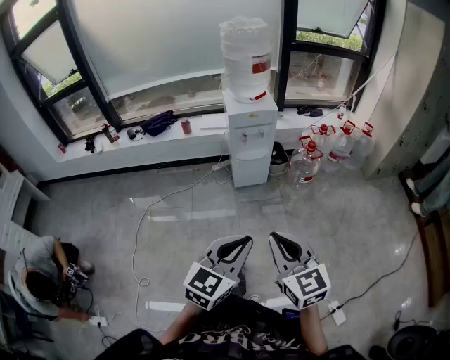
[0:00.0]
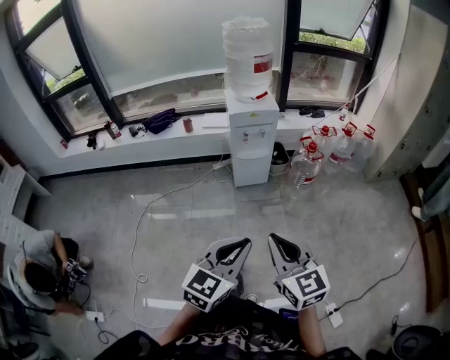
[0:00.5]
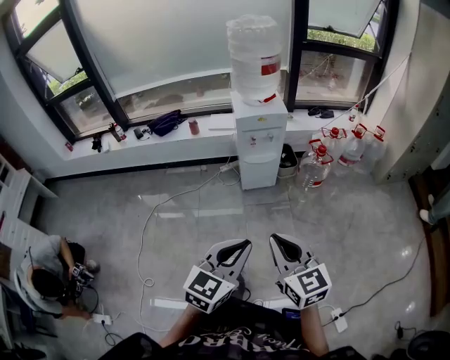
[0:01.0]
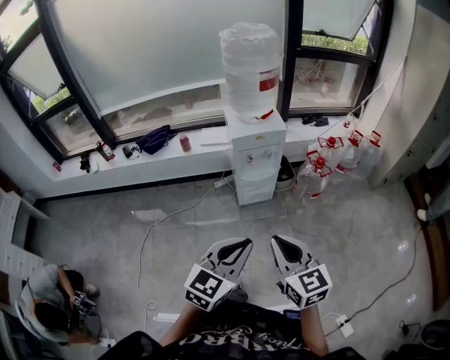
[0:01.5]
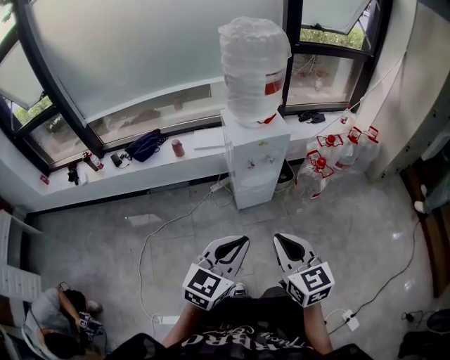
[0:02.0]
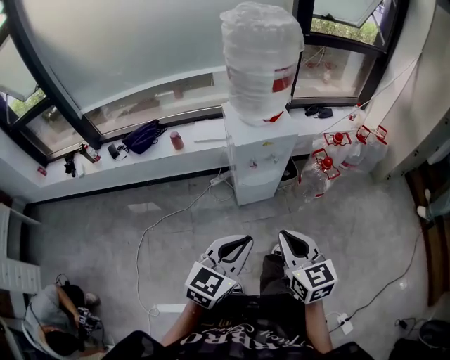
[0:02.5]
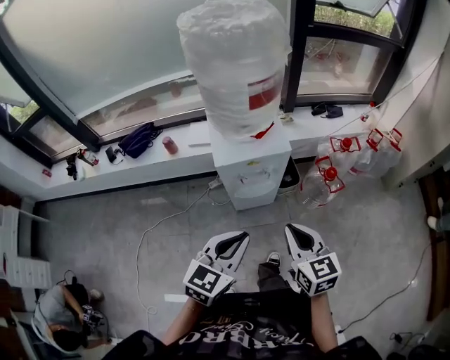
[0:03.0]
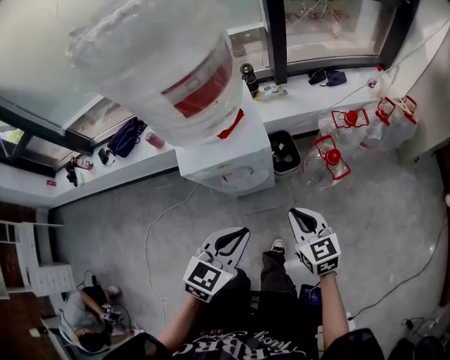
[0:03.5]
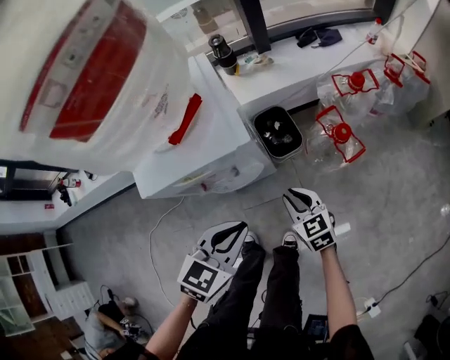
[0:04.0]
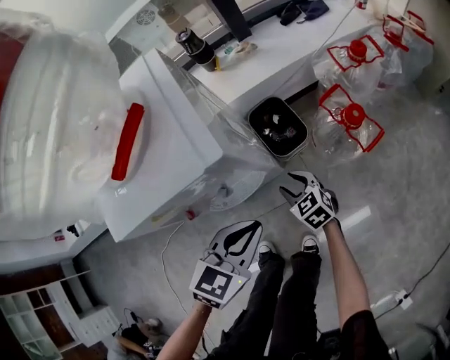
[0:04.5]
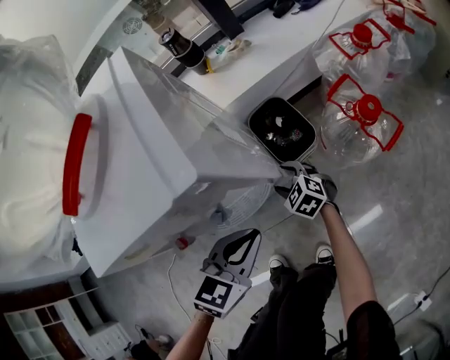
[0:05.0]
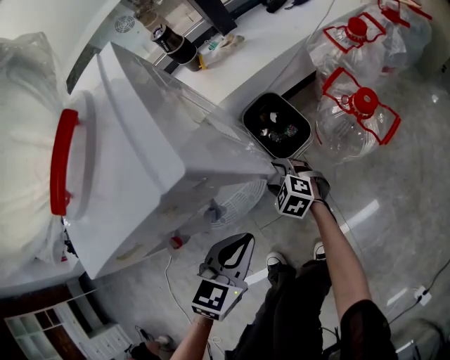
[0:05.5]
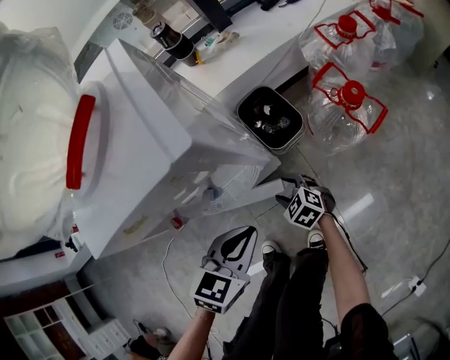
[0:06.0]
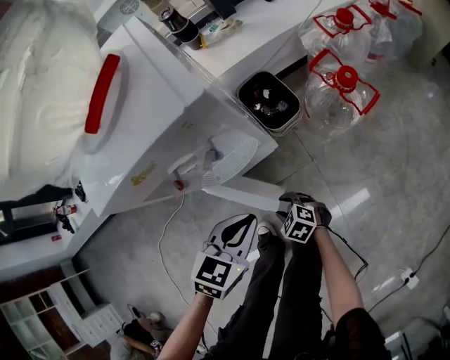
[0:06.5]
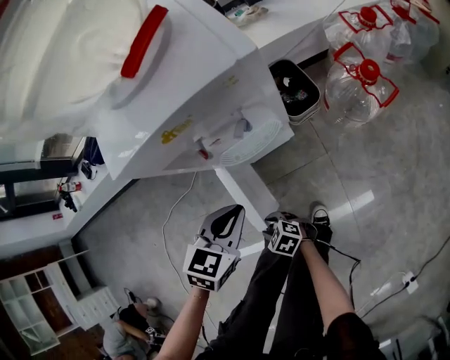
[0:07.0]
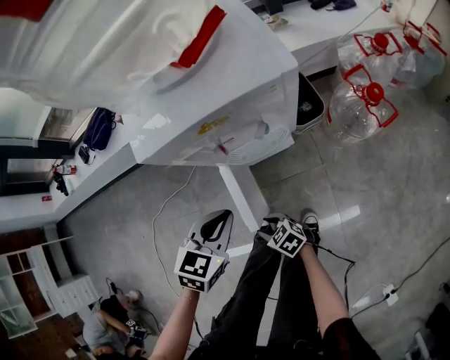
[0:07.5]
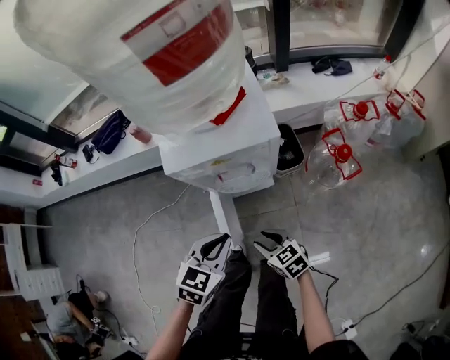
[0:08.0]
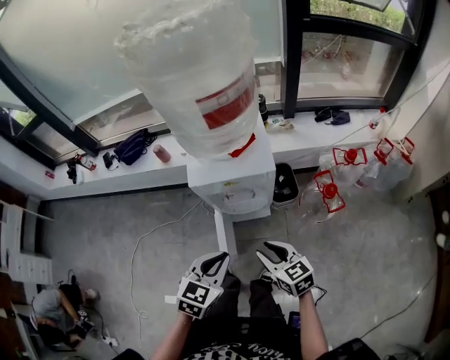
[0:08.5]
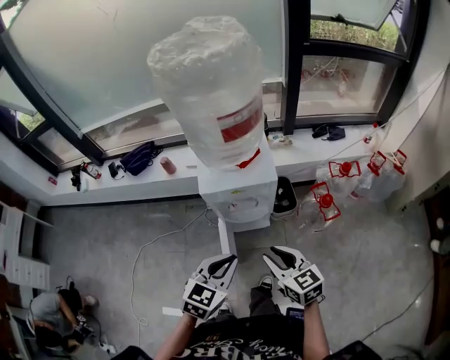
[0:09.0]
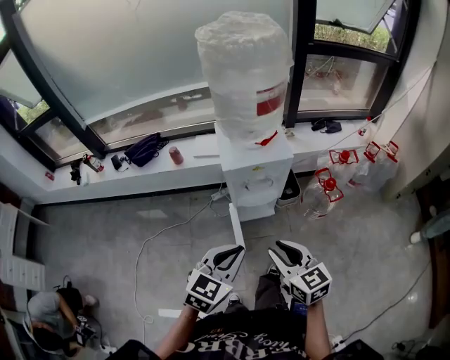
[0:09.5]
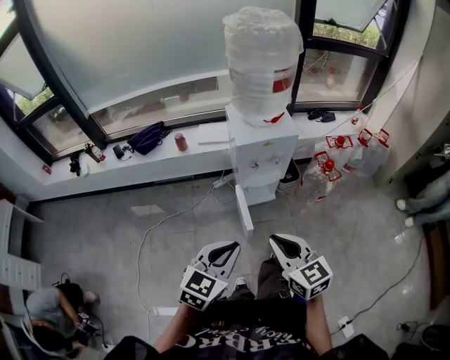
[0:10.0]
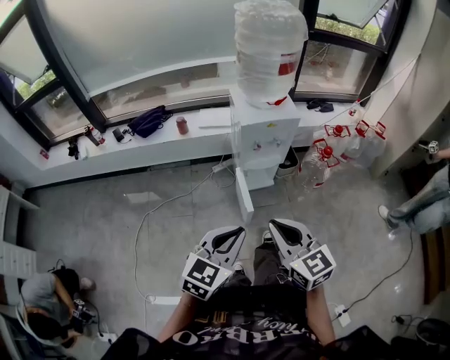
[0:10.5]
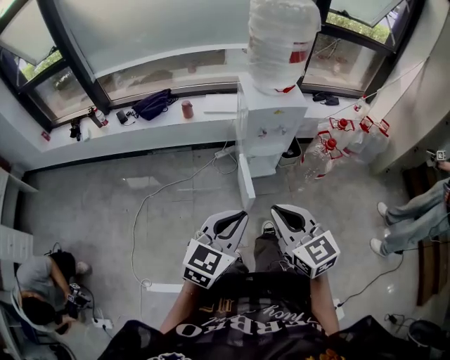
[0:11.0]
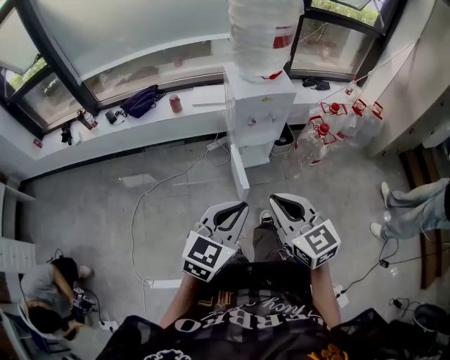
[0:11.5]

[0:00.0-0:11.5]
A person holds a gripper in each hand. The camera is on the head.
0:00.0 to 0:02.0: Both grippers travel together forward and to the left, roughly 30 cm.
0:02.0 to 0:04.0: Both grippers are carried forward and to the right, some 50 cm. The two grippers go roughly 35 cm downward. The left gripper changes its angle by about 20 degrees.
0:04.0 to 0:06.0: Both grippers travel together downward, some 25 cm. The right gripper swivels about 20 degrees, and opens its fingers.
0:06.0 to 0:07.5: The left gripper moves approximately 15 cm. The right gripper ends up some 30 cm from where it was, and swivels about 20 degrees.
0:07.5 to 0:09.5: The right gripper heads upward, covering some 50 cm, and swivels approximately 40 degrees. The left gripper is displaced upward and backward by some 40 cm, and turns by approximately 20 degrees.
0:09.5 to 0:11.5: Both grippers travel together backward and to the left, some 20 cm. The right gripper closes its fingers.

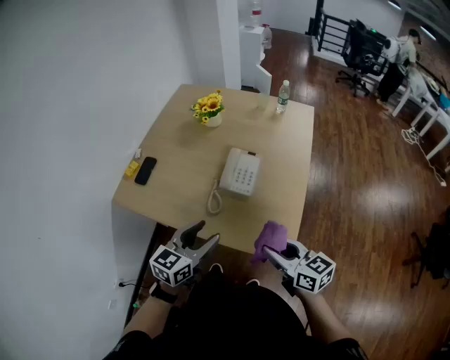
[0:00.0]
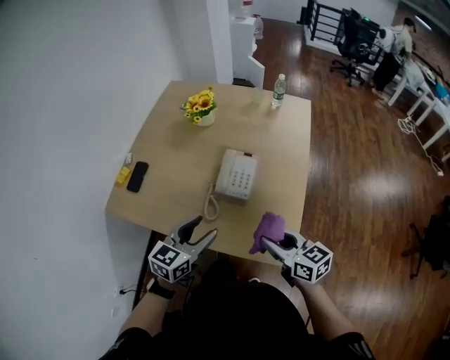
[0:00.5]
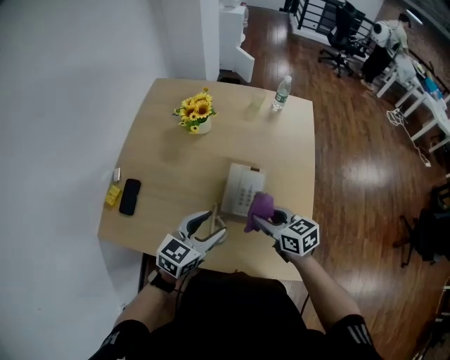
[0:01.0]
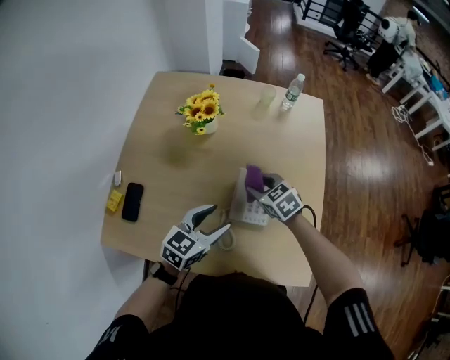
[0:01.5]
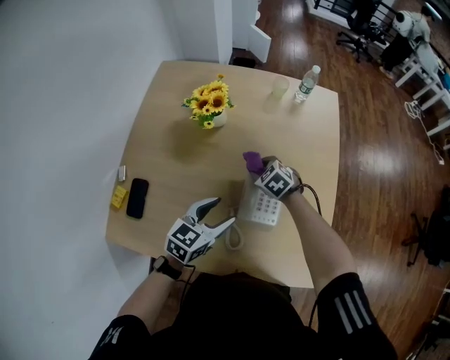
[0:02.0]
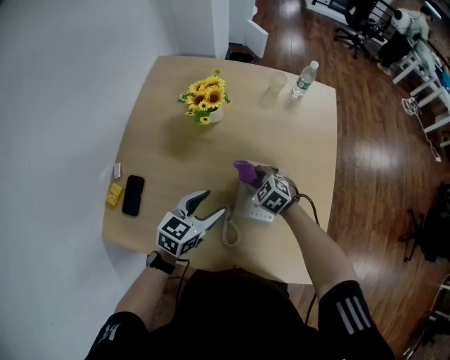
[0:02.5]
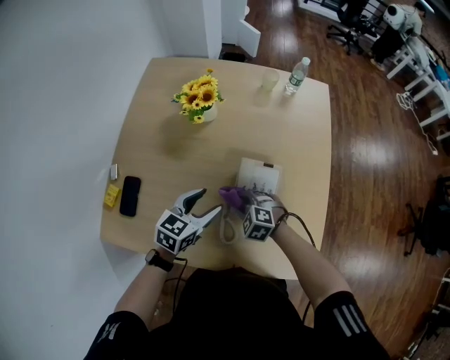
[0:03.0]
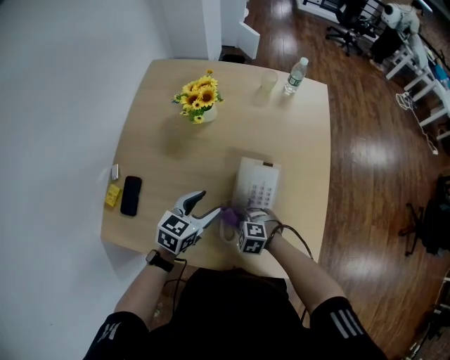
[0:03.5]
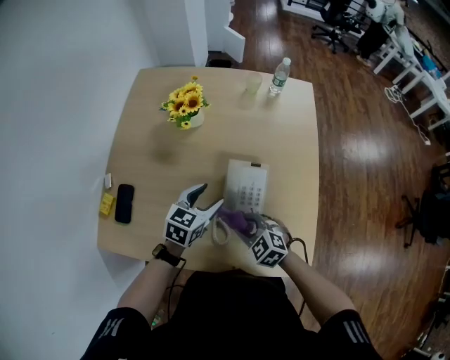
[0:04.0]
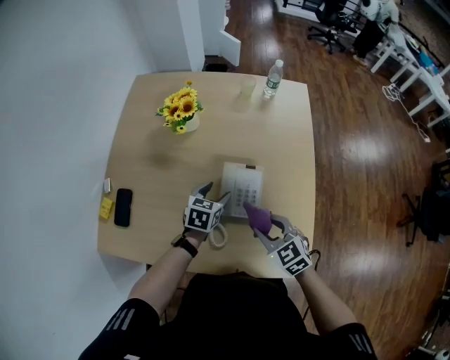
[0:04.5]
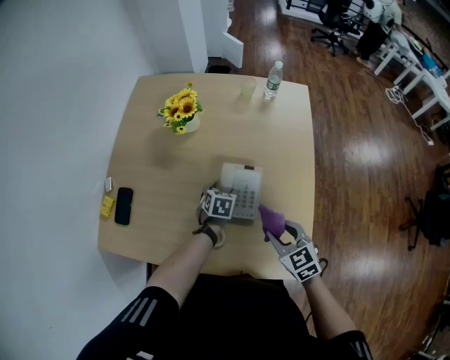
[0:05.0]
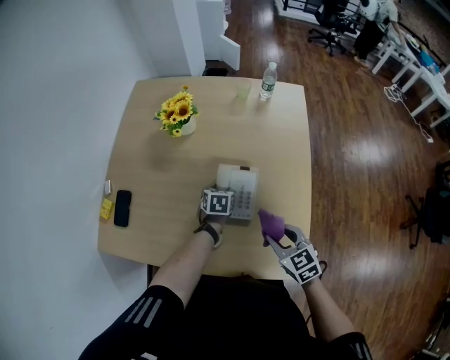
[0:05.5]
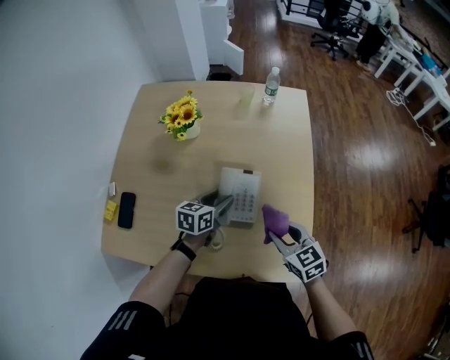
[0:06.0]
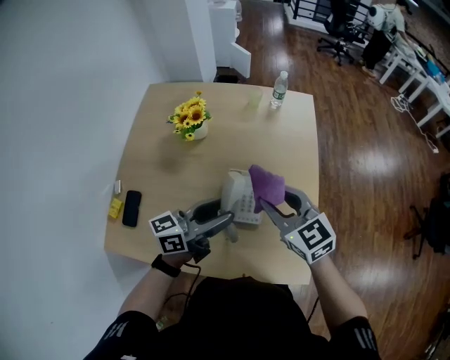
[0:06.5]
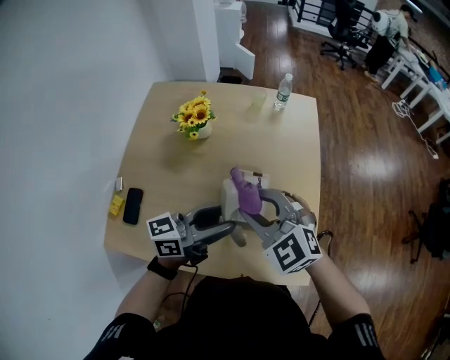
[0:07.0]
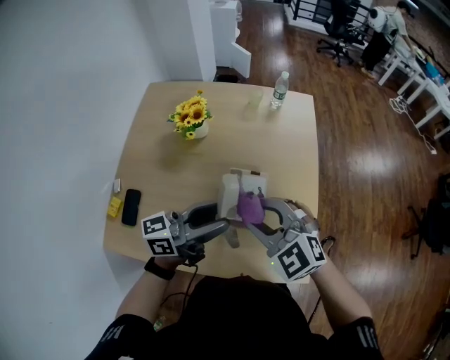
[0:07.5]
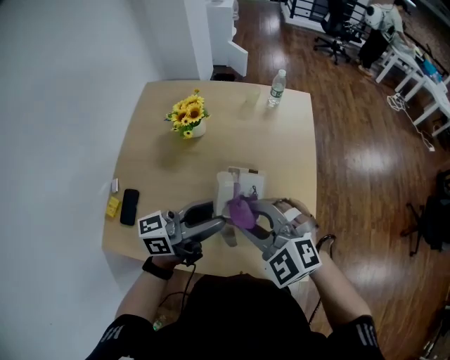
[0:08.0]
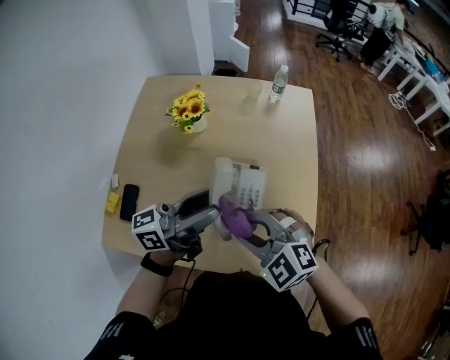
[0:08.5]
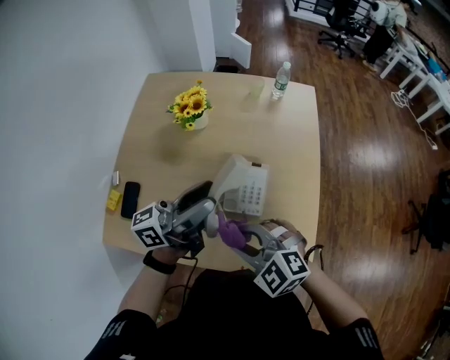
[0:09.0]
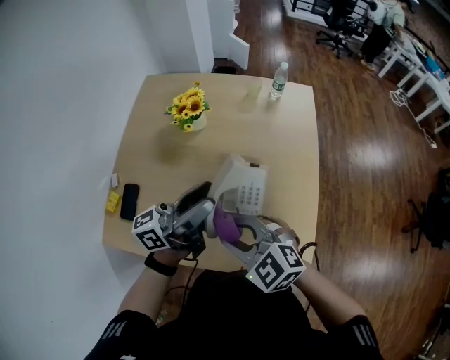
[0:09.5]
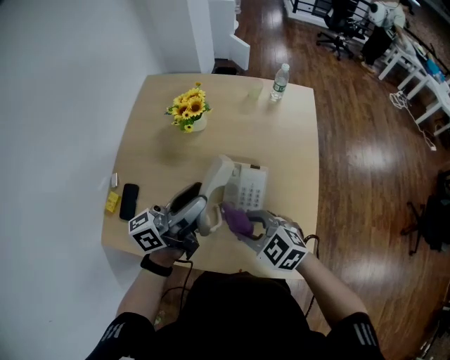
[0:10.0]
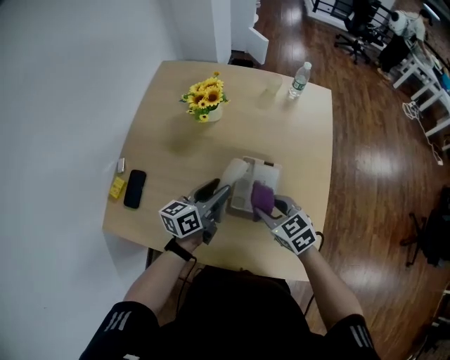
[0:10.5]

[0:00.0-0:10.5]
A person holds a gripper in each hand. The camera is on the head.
0:00.0 to 0:02.0: The left gripper shifts approximately 30 cm forward. The right gripper goes some 50 cm forward and downward, and tips its fingers downward by some 40 degrees.
0:02.0 to 0:04.0: The right gripper goes approximately 20 cm backward.
0:04.0 to 0:06.5: The left gripper moves upward, roughly 15 cm, and angles its fingers upward, by about 40 degrees. Meanwhile the right gripper shifts about 25 cm upward and to the right, and turns by roughly 30 degrees.
0:06.5 to 0:08.5: The left gripper moves upward, approximately 5 cm, while the right gripper goes some 15 cm backward and to the left, and swivels approximately 40 degrees.
0:08.5 to 0:10.5: The left gripper travels downward by about 20 cm, and turns by about 40 degrees. Meanwhile the right gripper shifts about 15 cm downward and forward, and turns by about 40 degrees.

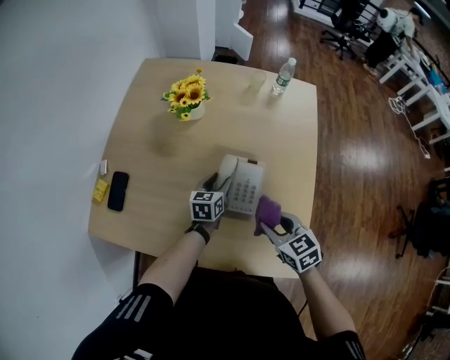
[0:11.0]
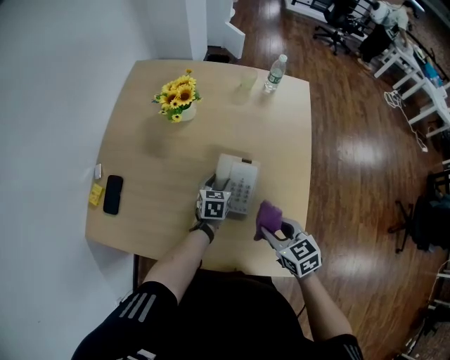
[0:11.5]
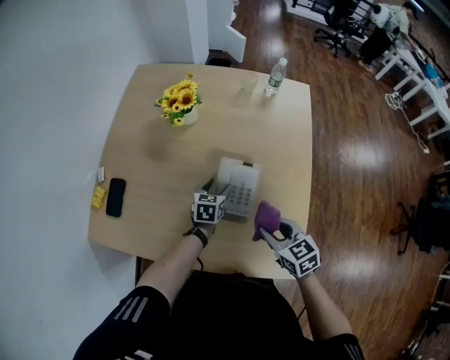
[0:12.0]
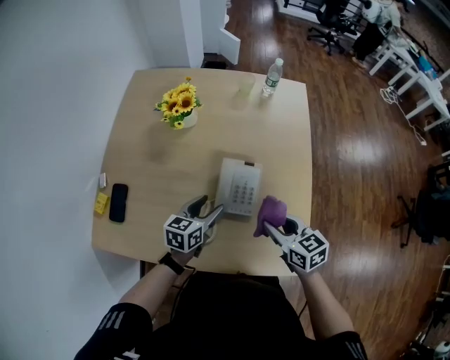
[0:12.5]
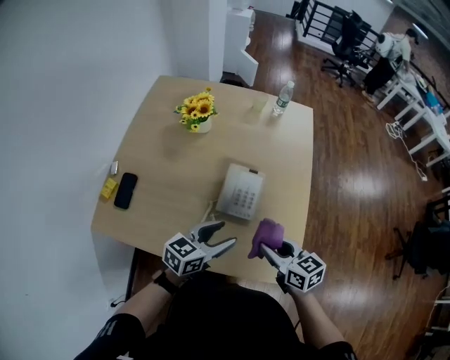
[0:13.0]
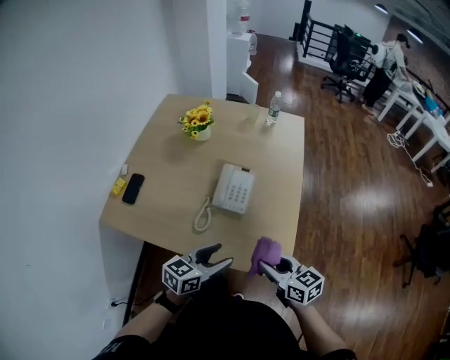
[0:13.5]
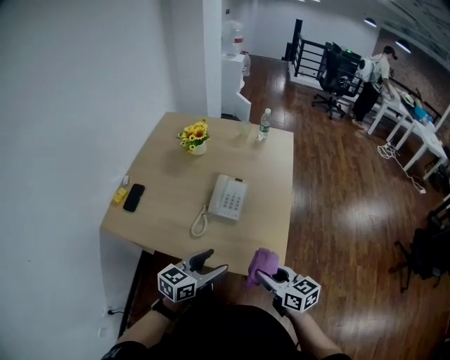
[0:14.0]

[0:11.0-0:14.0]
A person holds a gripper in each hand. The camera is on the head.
0:11.0 to 0:12.5: The left gripper moves backward and upward, some 10 cm.
0:12.5 to 0:14.0: The right gripper is displaced backward by roughly 25 cm; the left gripper moves backward and upward, approximately 30 cm.

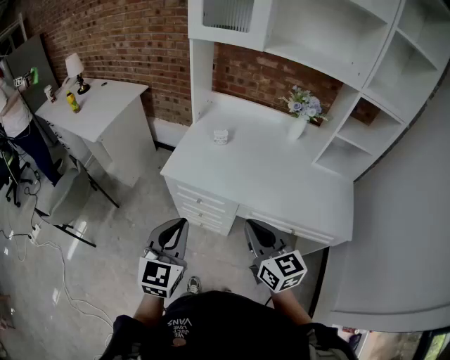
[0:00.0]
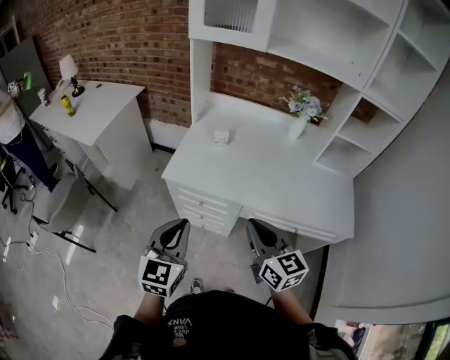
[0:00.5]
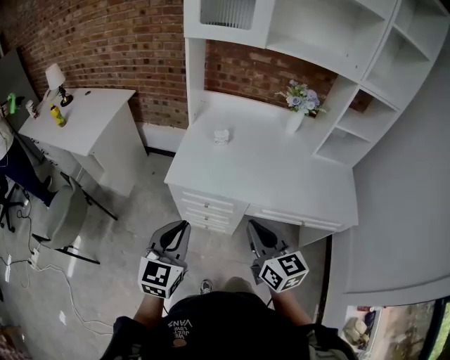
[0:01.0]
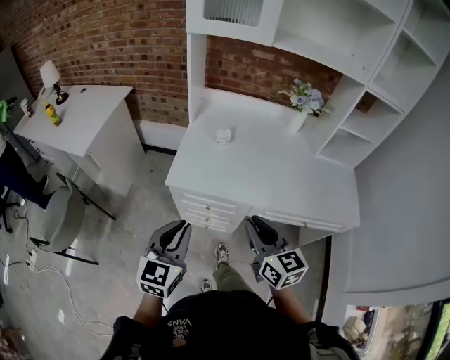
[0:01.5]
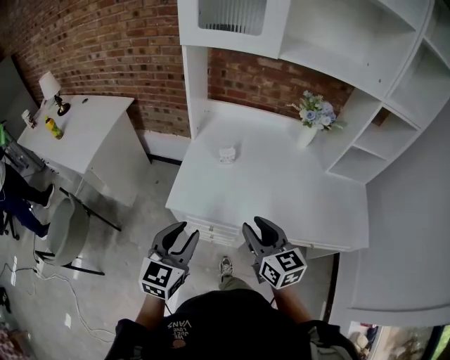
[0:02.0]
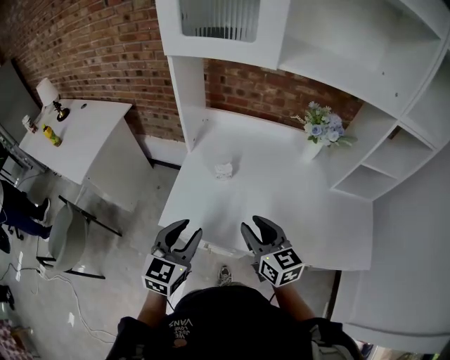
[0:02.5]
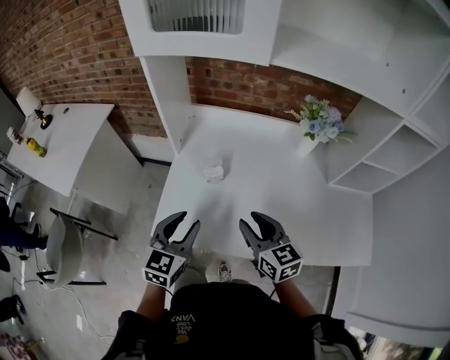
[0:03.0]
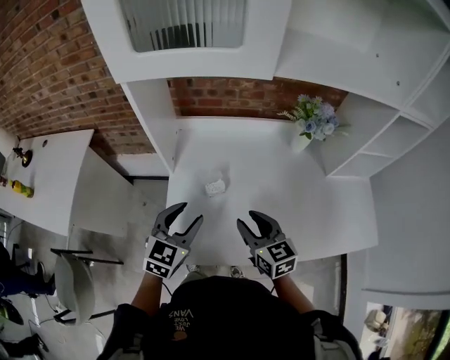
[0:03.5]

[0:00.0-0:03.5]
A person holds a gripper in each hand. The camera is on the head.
0:00.0 to 0:02.0: Both grippers move forward and to the left, about 15 cm. The right gripper opens its fingers, while the left gripper opens up.
0:02.0 to 0:03.5: The grippers both shift forward by roughly 25 cm. The left gripper changes its angle by some 20 degrees.
